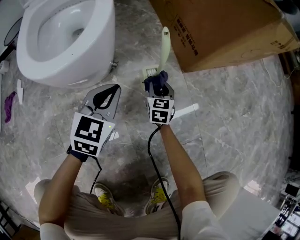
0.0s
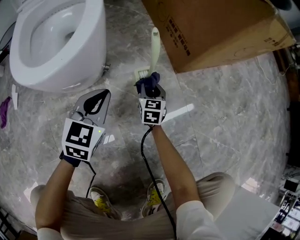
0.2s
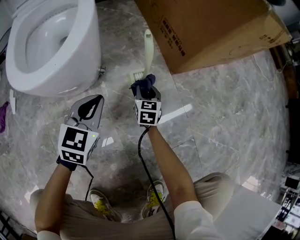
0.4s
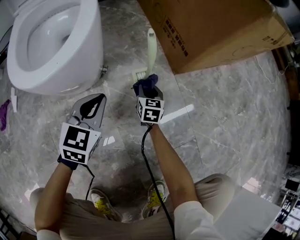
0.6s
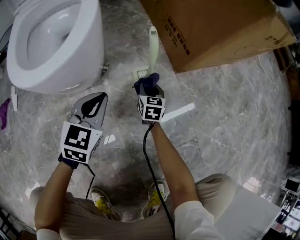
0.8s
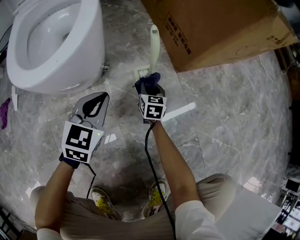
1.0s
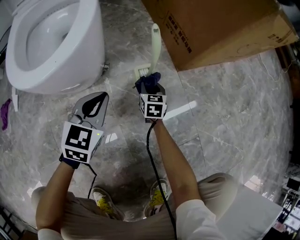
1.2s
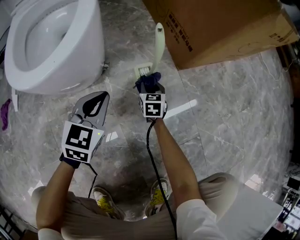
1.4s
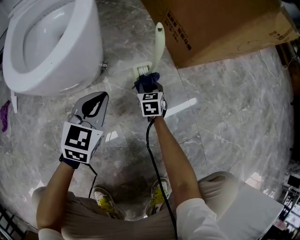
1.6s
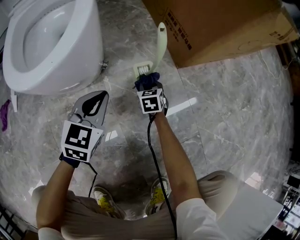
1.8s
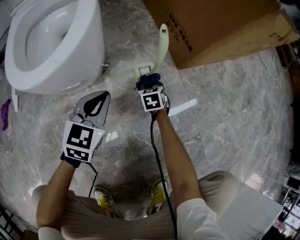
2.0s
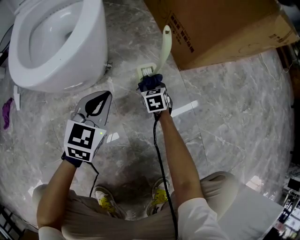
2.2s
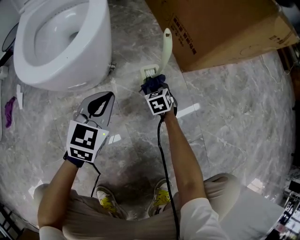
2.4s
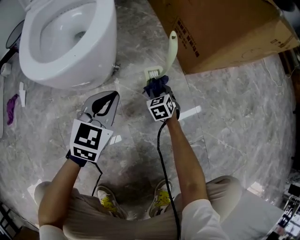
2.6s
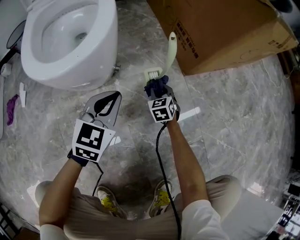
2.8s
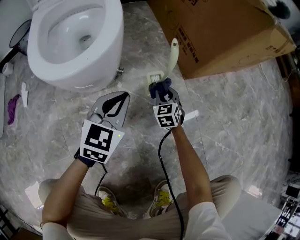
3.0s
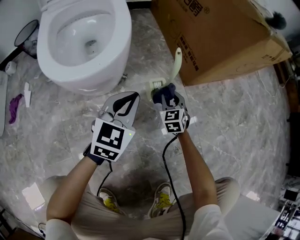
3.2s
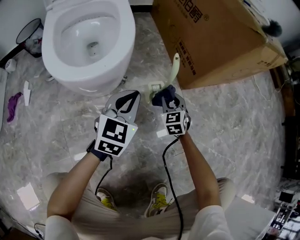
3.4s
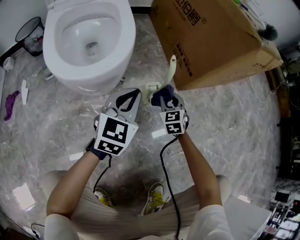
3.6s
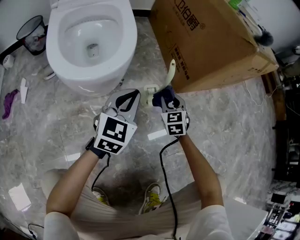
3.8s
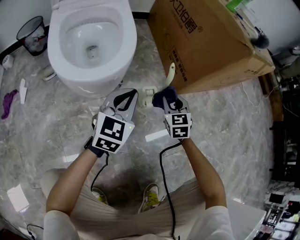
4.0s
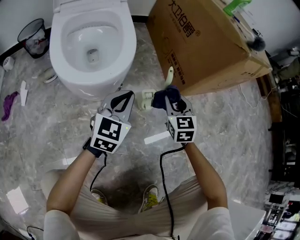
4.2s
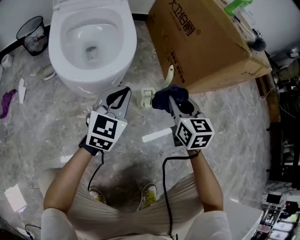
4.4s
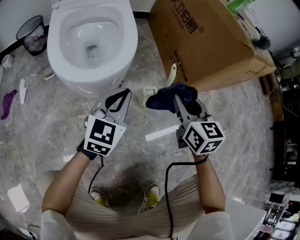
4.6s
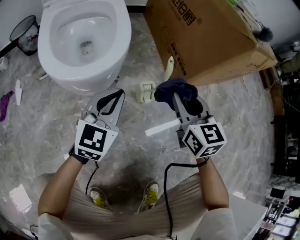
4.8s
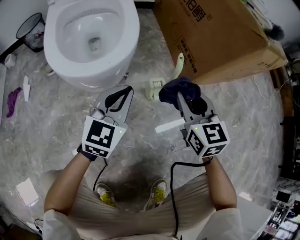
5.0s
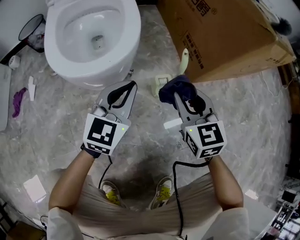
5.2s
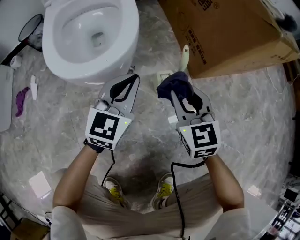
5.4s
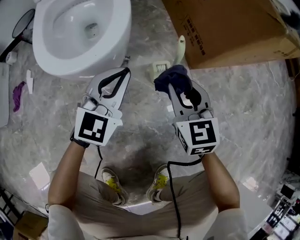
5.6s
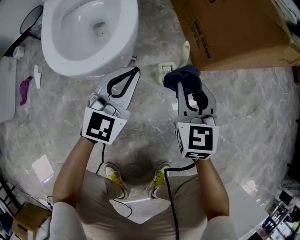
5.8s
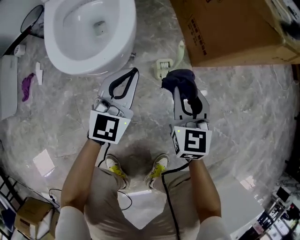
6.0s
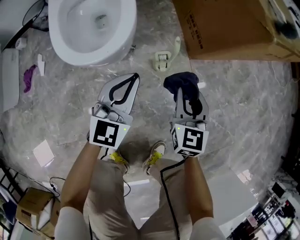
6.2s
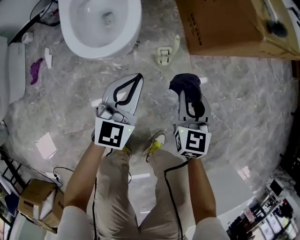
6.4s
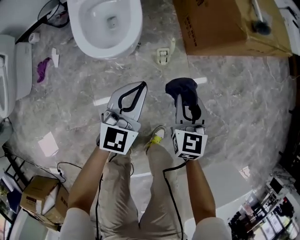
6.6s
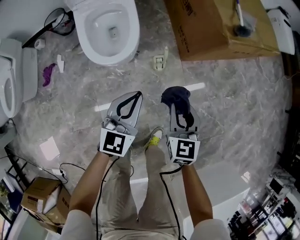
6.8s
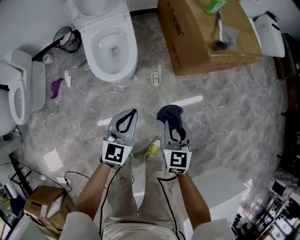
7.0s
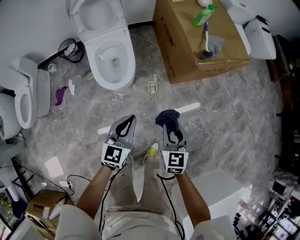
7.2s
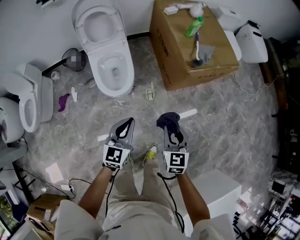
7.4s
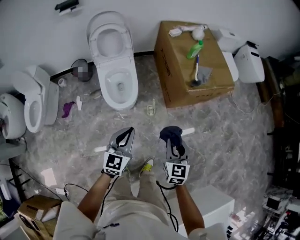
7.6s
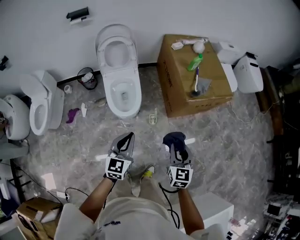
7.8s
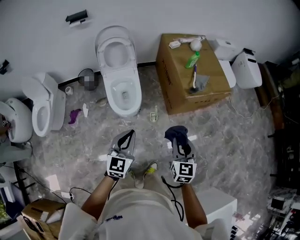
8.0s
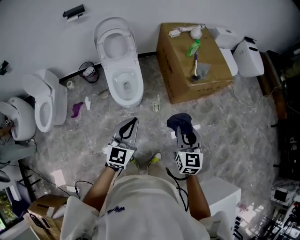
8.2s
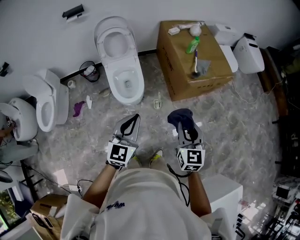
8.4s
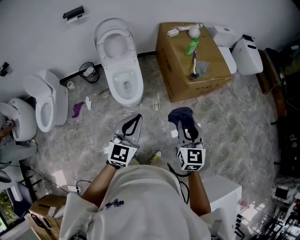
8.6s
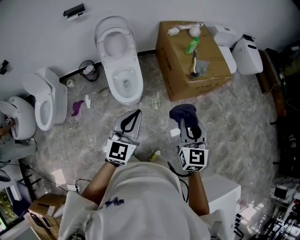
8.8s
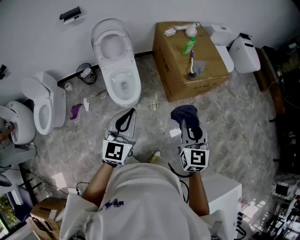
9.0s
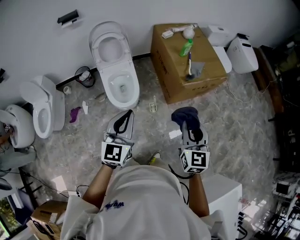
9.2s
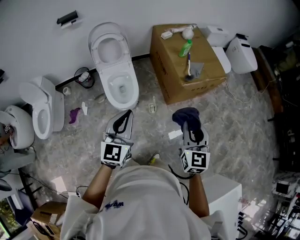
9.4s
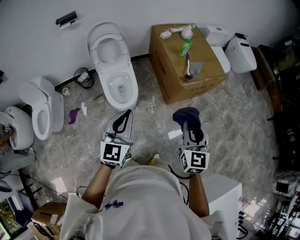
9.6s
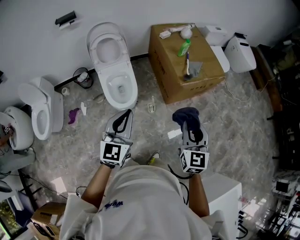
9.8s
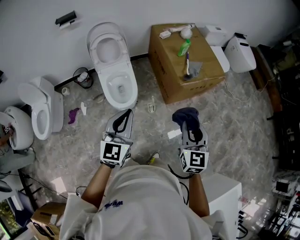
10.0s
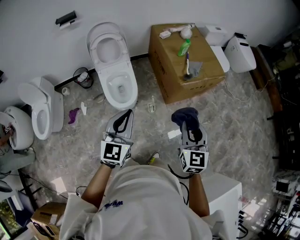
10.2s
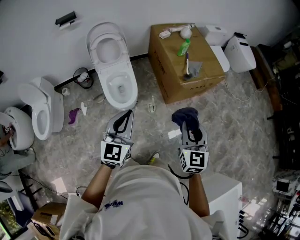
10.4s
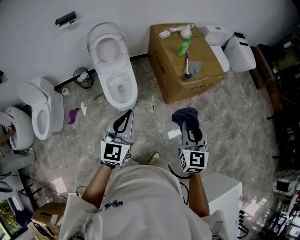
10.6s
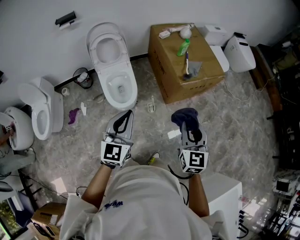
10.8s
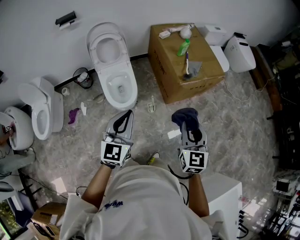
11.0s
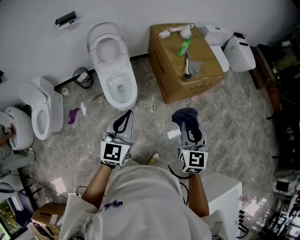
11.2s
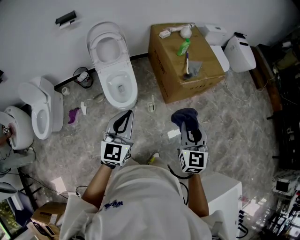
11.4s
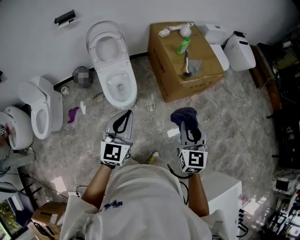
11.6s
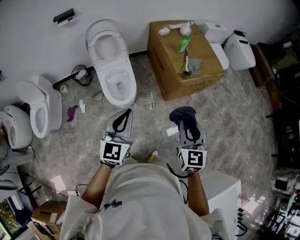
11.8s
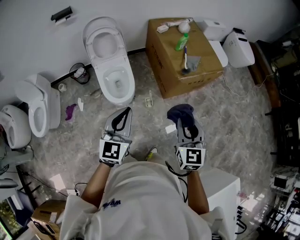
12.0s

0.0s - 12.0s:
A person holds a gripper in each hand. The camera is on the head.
0.0s - 1.6s: The right gripper shifts some 5 cm downward.
1.6s - 3.0s: Both grippers move upward, approximately 5 cm. The right gripper swivels some 20 degrees.
3.0s - 4.4s: The left gripper shifts approximately 10 cm upward. Meanwhile the right gripper is displaced upward by some 25 cm.
4.4s - 6.0s: The left gripper changes place by roughly 5 cm.
6.0s - 7.6s: Both grippers move upward, approximately 50 cm.
7.6s - 9.0s: Both grippers move upward, some 20 cm.
9.0s - 10.4s: The grippers make only small movements.
10.4s - 12.0s: Both grippers stay put.

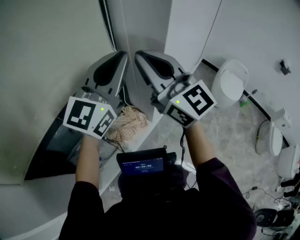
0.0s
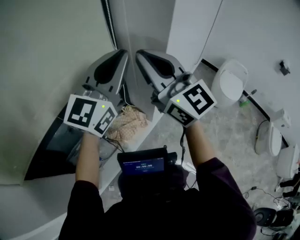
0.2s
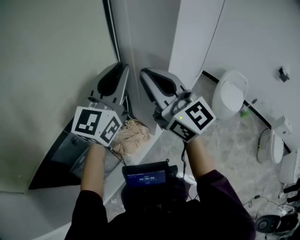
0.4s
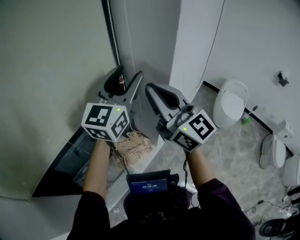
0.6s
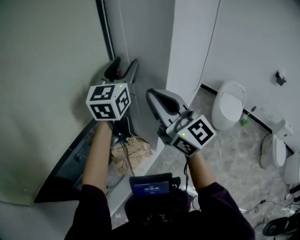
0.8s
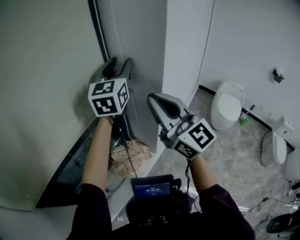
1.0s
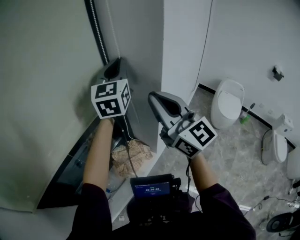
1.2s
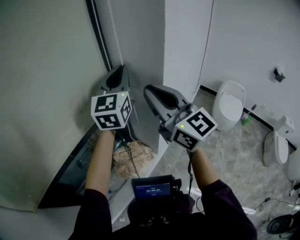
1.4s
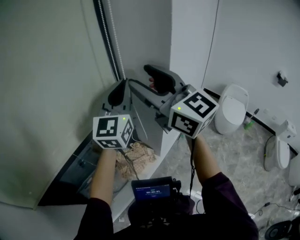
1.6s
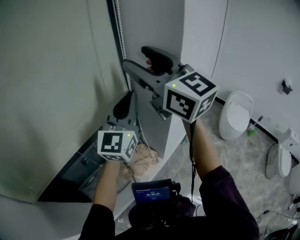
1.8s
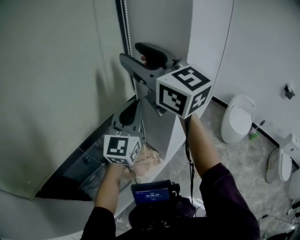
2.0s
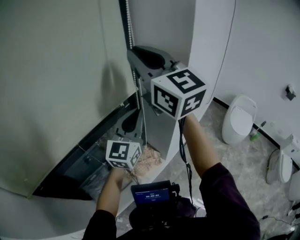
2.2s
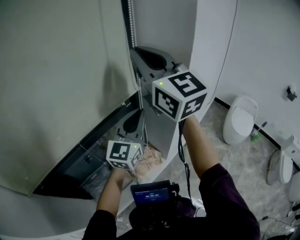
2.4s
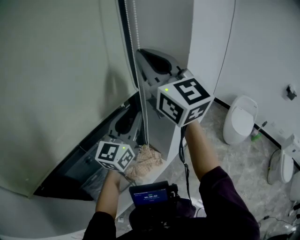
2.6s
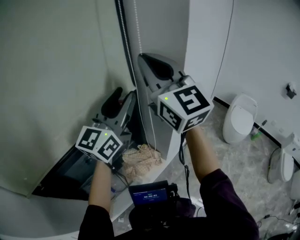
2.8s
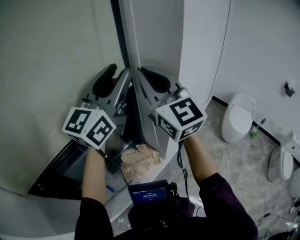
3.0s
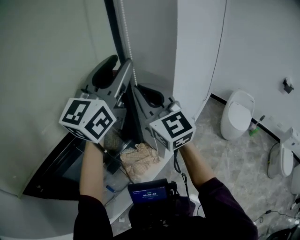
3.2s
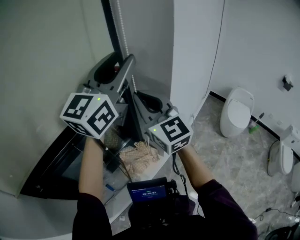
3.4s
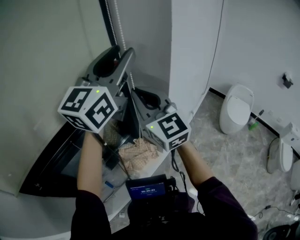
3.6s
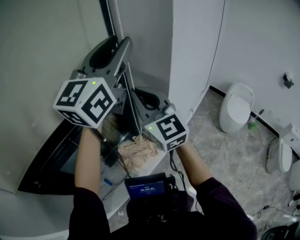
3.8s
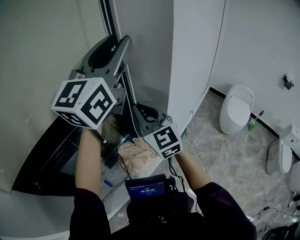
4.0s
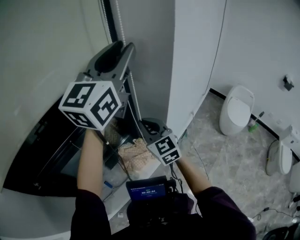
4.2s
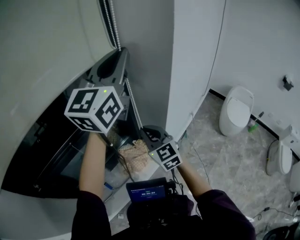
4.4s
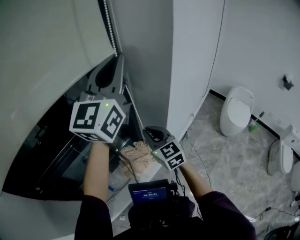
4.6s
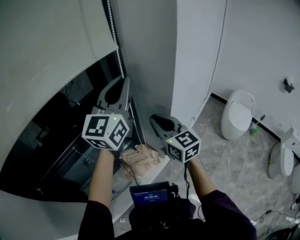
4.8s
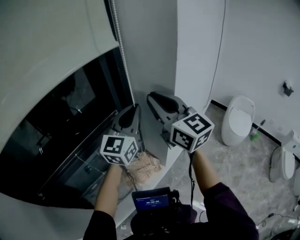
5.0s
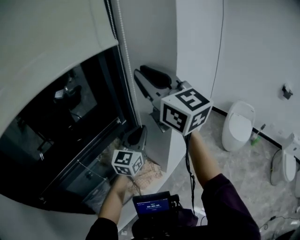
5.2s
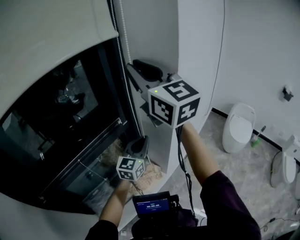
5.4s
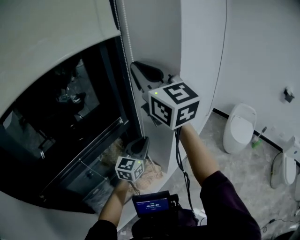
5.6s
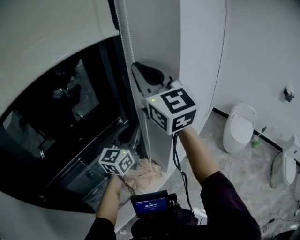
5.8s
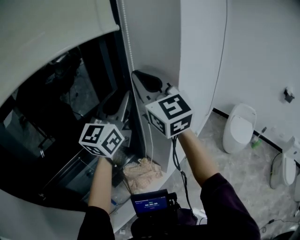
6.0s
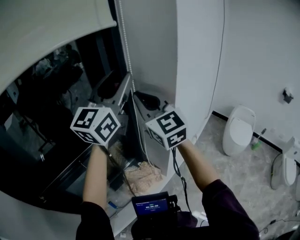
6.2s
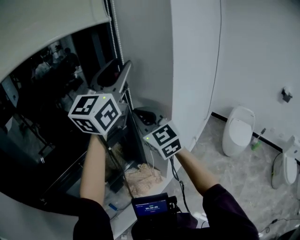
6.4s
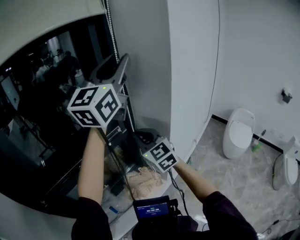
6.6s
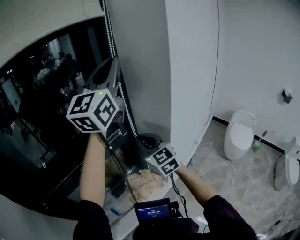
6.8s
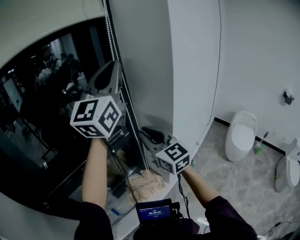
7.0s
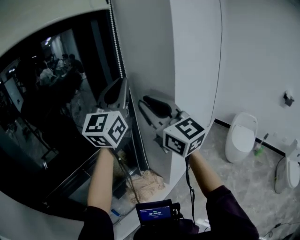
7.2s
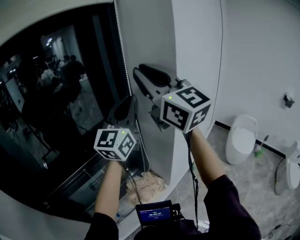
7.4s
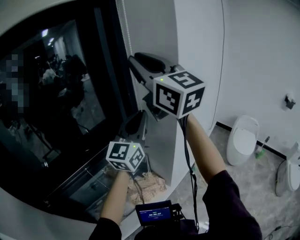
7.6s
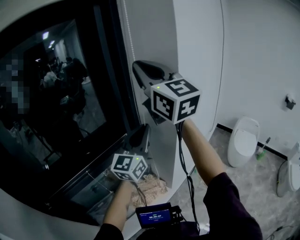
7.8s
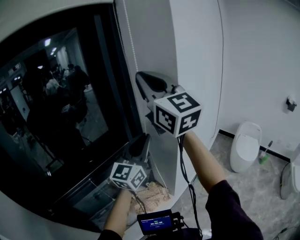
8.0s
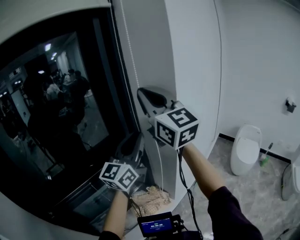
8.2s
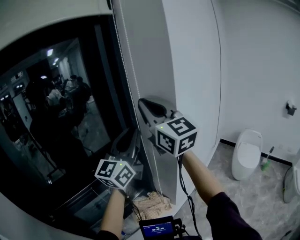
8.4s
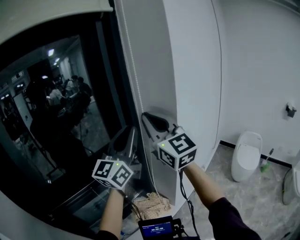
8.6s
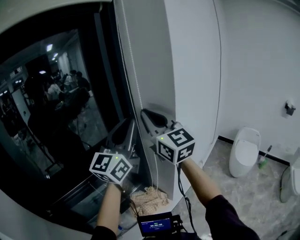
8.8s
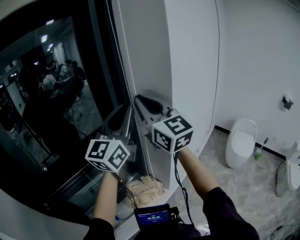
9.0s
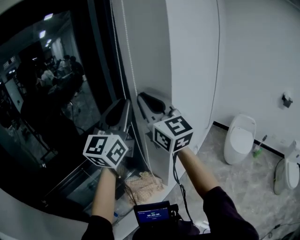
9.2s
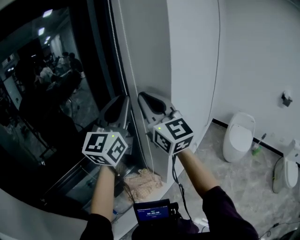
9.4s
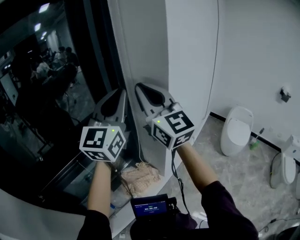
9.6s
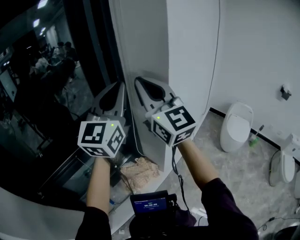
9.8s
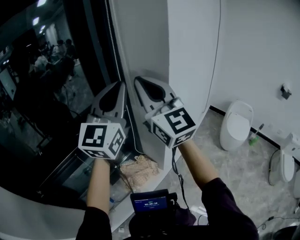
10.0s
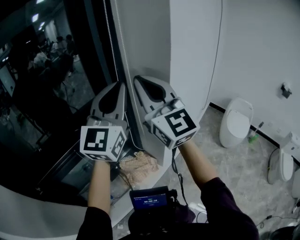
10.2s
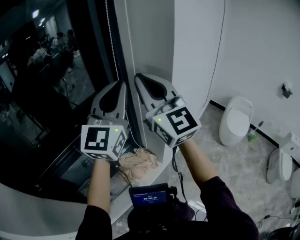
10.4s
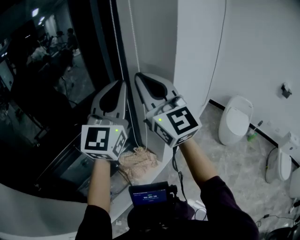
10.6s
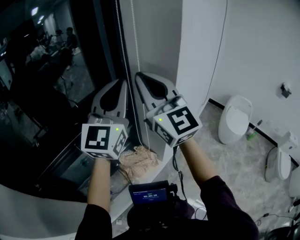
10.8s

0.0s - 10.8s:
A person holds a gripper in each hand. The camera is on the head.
0.0s - 1.6s: The right gripper travels upward by roughly 10 cm, and opens. Meanwhile the left gripper moves forward, some 5 cm, and opens, then closes once more.
1.6s - 3.0s: The left gripper shifts some 10 cm upward, and opens up. The right gripper closes.
3.0s - 4.6s: The right gripper is displaced downward by approximately 30 cm, and swivels about 30 degrees; the left gripper moves roughly 5 cm, and closes its fingers.
4.6s - 6.2s: The right gripper moves upward, about 25 cm, and swivels roughly 20 degrees; the left gripper moves some 30 cm downward and comes back, and opens up.
6.2s - 7.8s: The left gripper heads downward, covering roughly 15 cm, and closes, while the right gripper is displaced upward by approximately 15 cm.
7.8s - 9.2s: The right gripper heads downward, covering some 10 cm. Meanwhile the left gripper travels upward by about 10 cm.
9.2s - 10.8s: The grippers stay close to where they were, moving slightly.

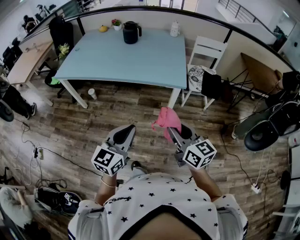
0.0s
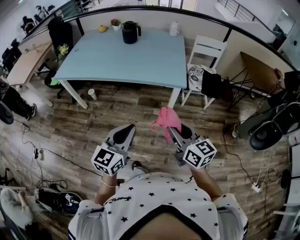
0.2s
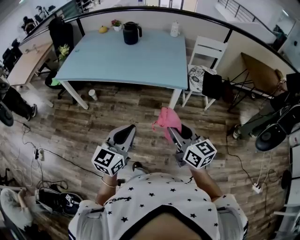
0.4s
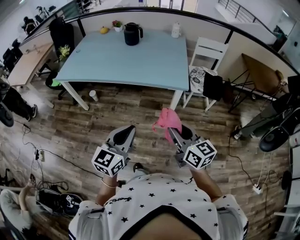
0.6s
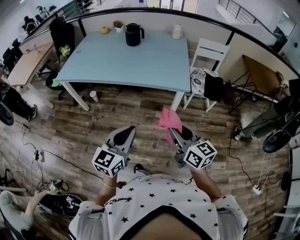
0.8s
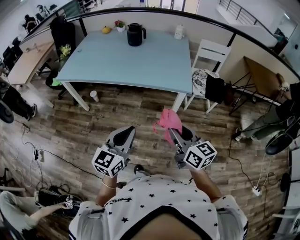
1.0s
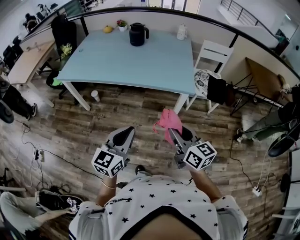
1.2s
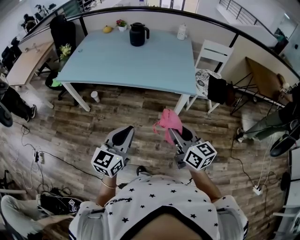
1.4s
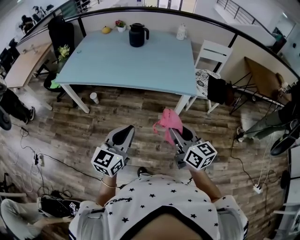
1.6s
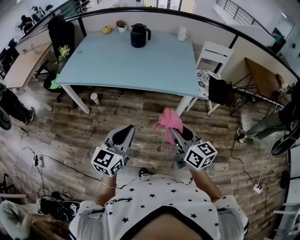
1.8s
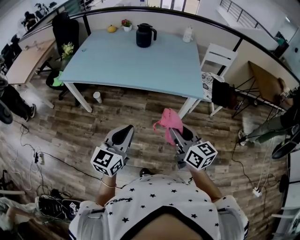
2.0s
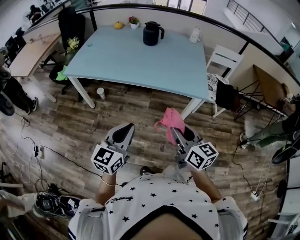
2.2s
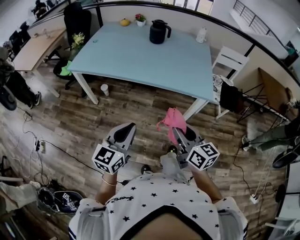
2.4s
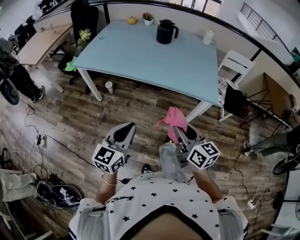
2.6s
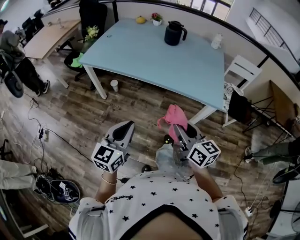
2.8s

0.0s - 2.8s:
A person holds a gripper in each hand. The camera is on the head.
0.0s - 1.4s: The left gripper goes roughly 10 cm to the left and forward; the right gripper travels to the left by approximately 5 cm.
1.4s - 2.8s: The left gripper heads to the left, covering about 10 cm; the right gripper goes roughly 15 cm to the left and forward.
